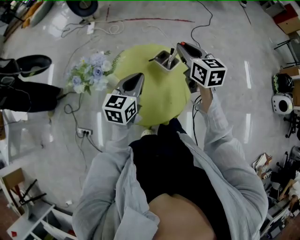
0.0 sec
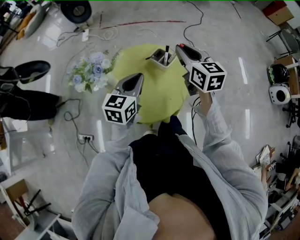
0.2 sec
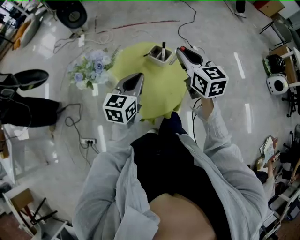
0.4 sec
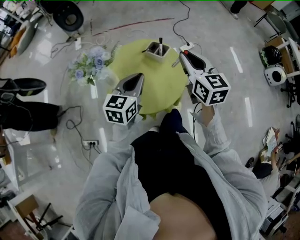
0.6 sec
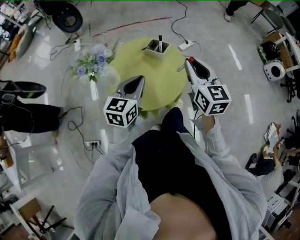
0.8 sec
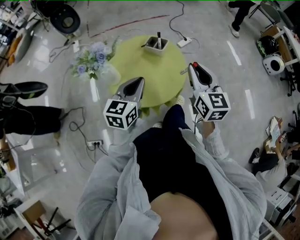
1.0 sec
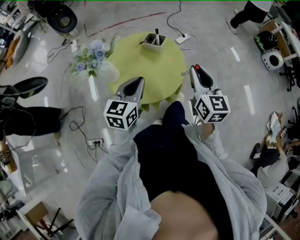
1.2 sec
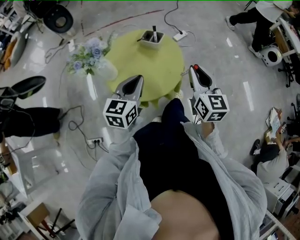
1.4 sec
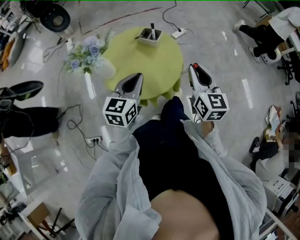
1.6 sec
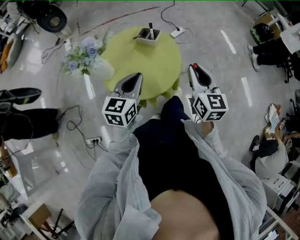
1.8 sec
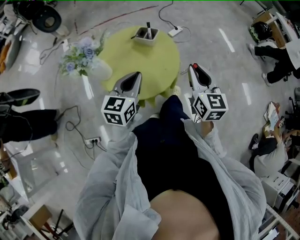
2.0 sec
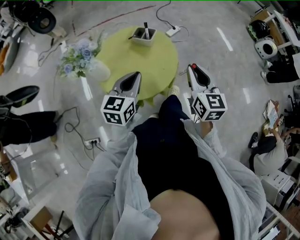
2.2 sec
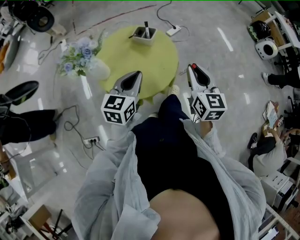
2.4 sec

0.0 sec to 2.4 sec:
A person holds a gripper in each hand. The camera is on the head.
0.0 sec to 1.2 sec: The left gripper goes roughly 15 cm backward. Meanwhile the right gripper shifts approximately 25 cm backward, and turns by roughly 30 degrees.
1.2 sec to 2.4 sec: There are only small adjustments of the grippers.

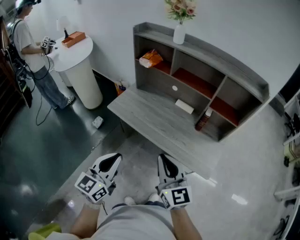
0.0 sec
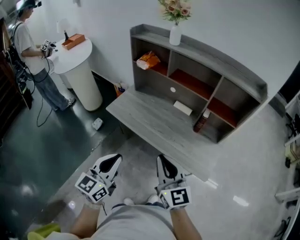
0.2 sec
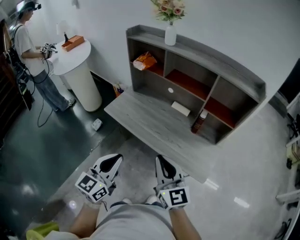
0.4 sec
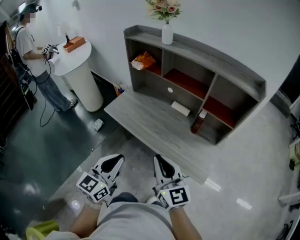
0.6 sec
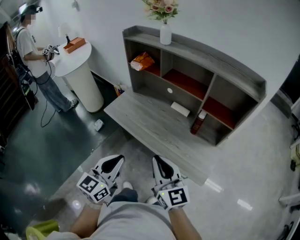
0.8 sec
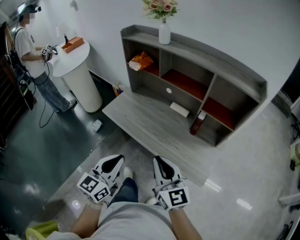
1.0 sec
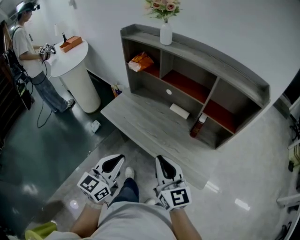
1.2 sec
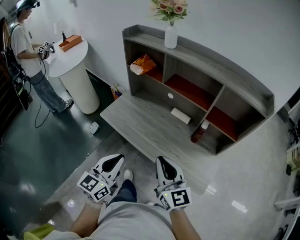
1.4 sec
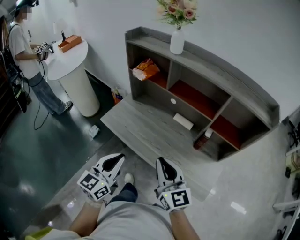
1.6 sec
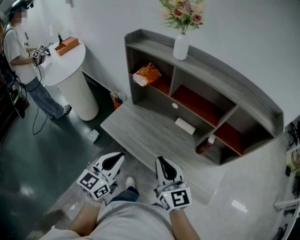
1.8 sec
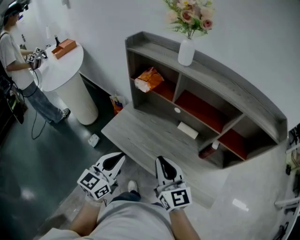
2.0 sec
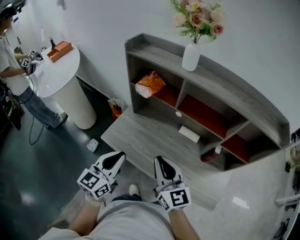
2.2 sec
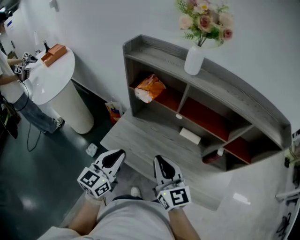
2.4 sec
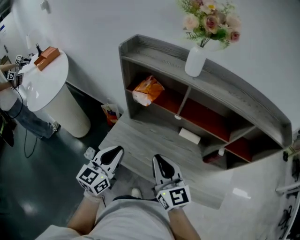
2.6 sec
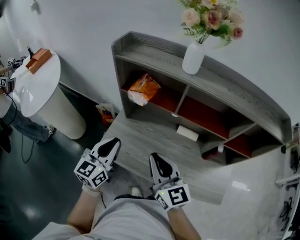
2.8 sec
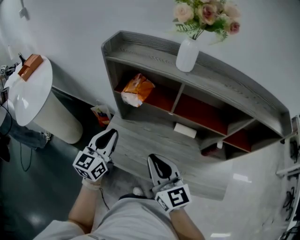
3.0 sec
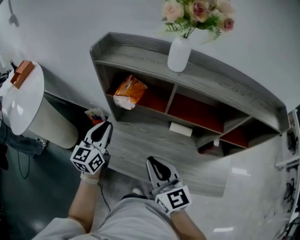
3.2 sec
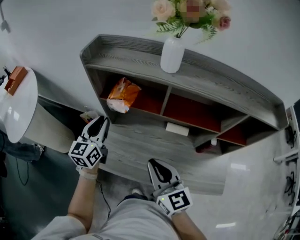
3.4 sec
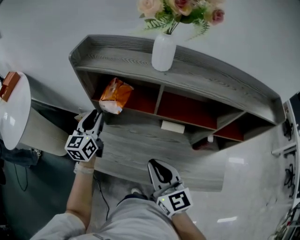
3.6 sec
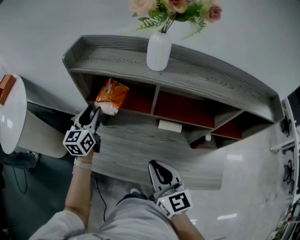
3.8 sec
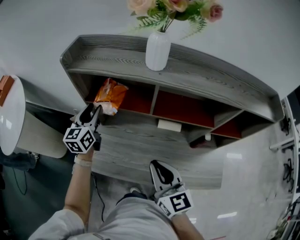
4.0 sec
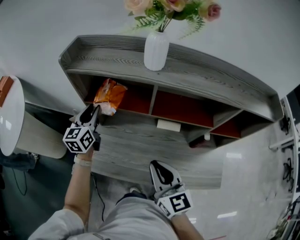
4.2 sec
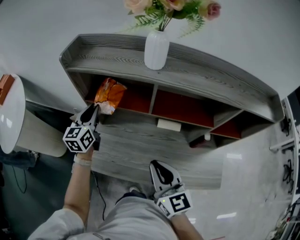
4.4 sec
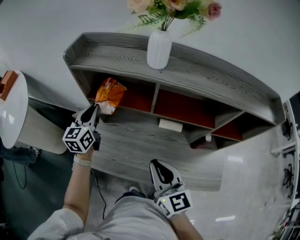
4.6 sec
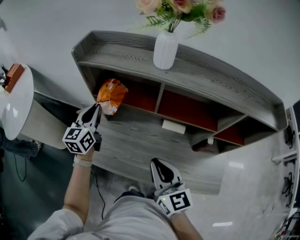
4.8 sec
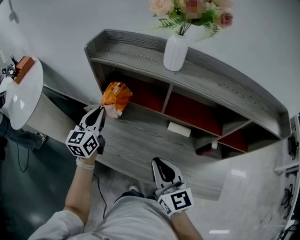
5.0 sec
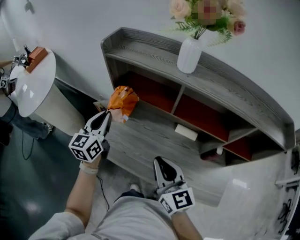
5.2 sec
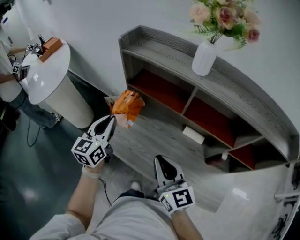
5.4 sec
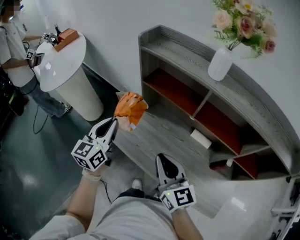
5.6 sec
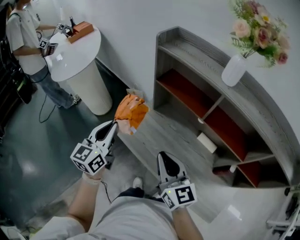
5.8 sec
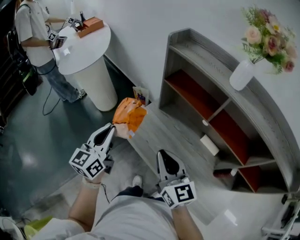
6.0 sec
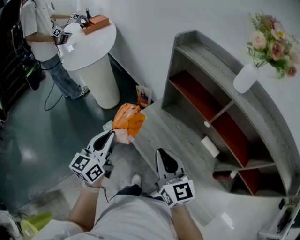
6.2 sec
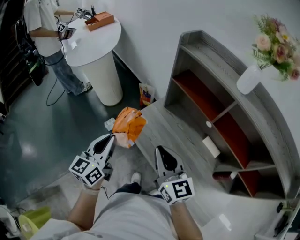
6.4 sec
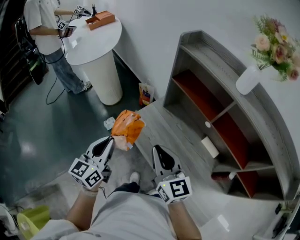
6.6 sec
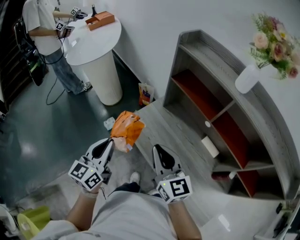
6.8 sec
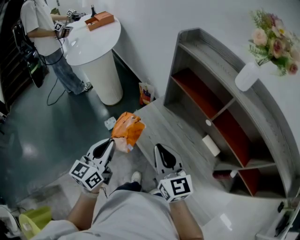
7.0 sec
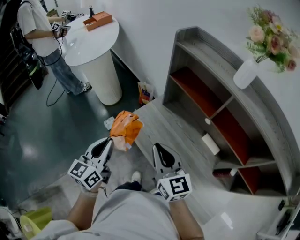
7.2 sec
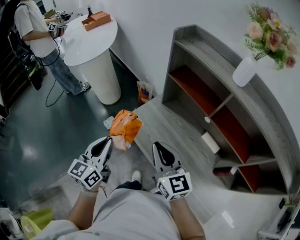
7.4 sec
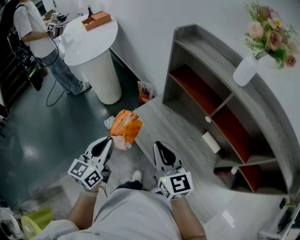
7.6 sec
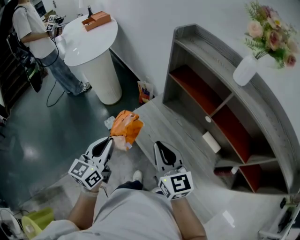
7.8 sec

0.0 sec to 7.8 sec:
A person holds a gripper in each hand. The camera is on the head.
0.0 sec to 1.6 sec: Both grippers move forward, approximately 15 cm.
1.6 sec to 3.2 sec: The right gripper travels forward and to the left by about 25 cm; the left gripper is displaced forward and to the left by approximately 40 cm.
3.2 sec to 4.6 sec: The left gripper shifts roughly 10 cm forward, and opens, then closes again. The right gripper heads to the right, covering some 5 cm.
4.6 sec to 6.2 sec: The right gripper changes place by about 10 cm, and rotates some 40 degrees. The left gripper moves some 35 cm, and swivels approximately 30 degrees.
6.2 sec to 7.8 sec: The left gripper is displaced backward by approximately 5 cm.

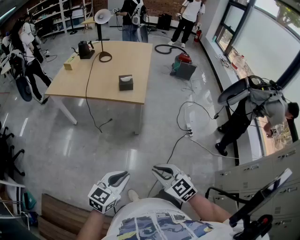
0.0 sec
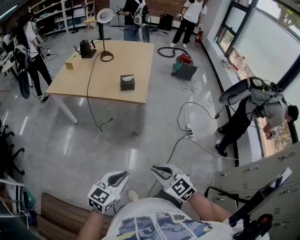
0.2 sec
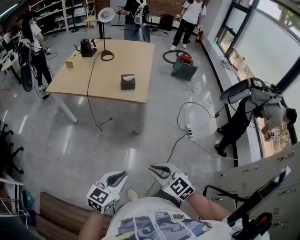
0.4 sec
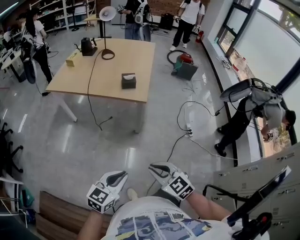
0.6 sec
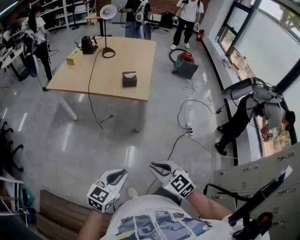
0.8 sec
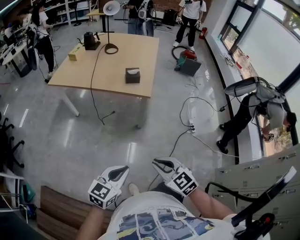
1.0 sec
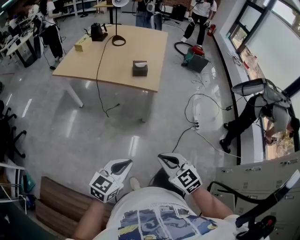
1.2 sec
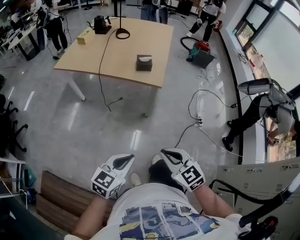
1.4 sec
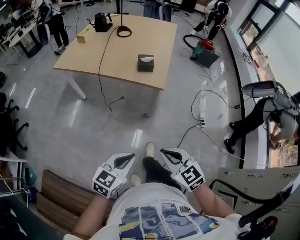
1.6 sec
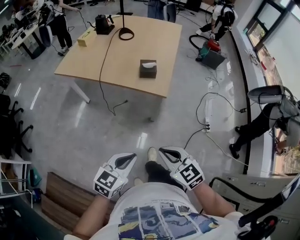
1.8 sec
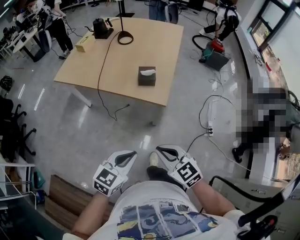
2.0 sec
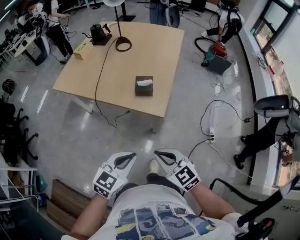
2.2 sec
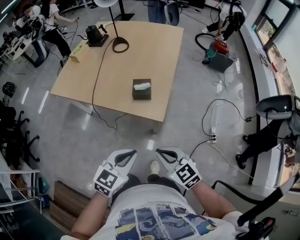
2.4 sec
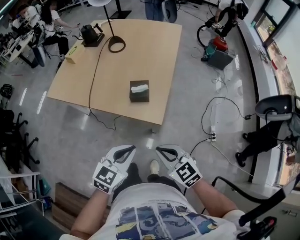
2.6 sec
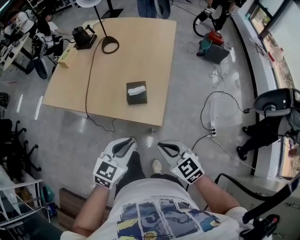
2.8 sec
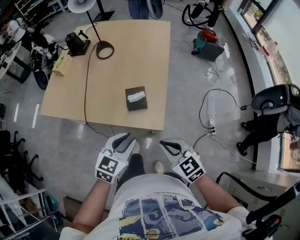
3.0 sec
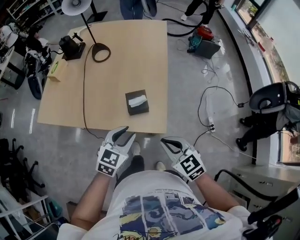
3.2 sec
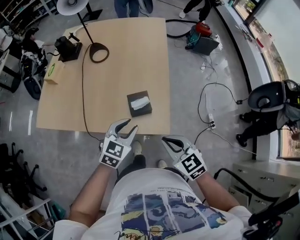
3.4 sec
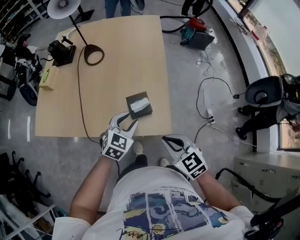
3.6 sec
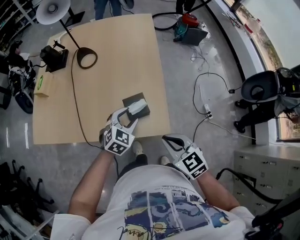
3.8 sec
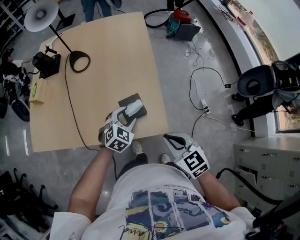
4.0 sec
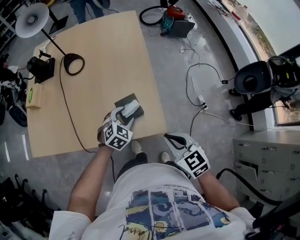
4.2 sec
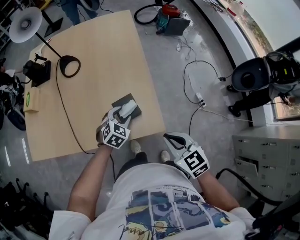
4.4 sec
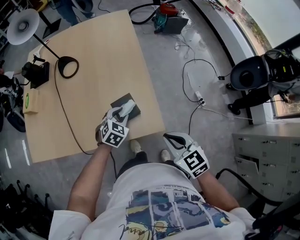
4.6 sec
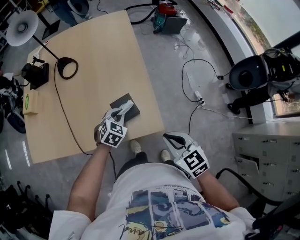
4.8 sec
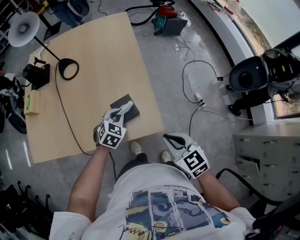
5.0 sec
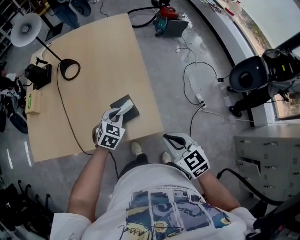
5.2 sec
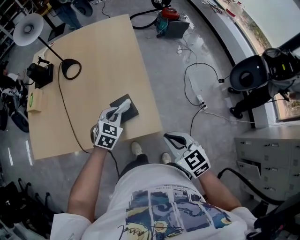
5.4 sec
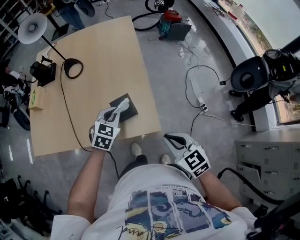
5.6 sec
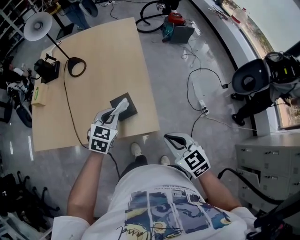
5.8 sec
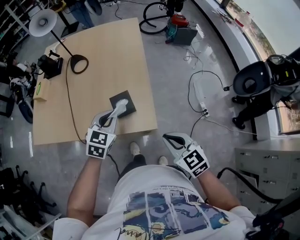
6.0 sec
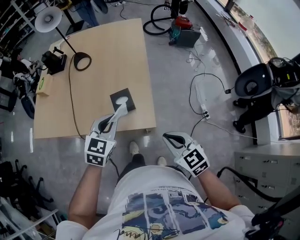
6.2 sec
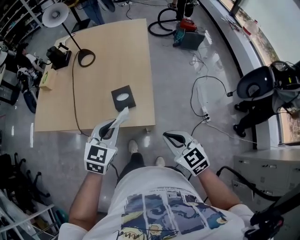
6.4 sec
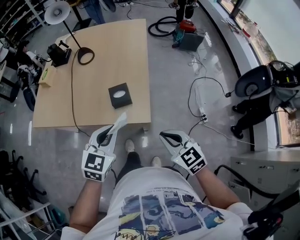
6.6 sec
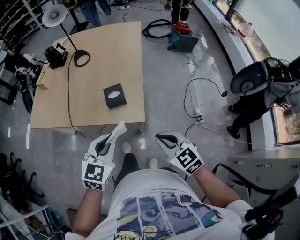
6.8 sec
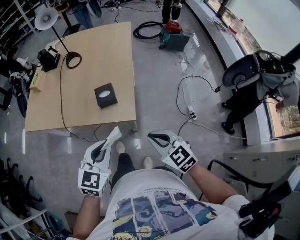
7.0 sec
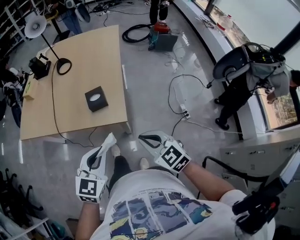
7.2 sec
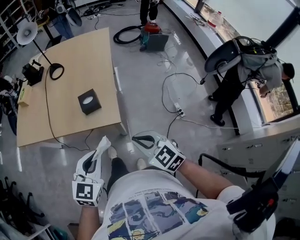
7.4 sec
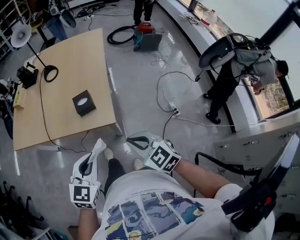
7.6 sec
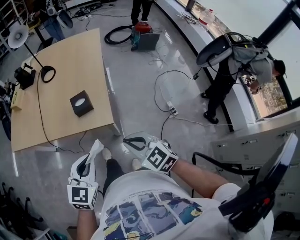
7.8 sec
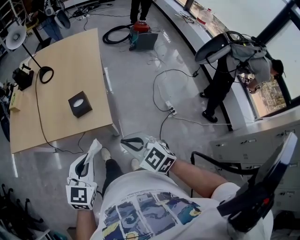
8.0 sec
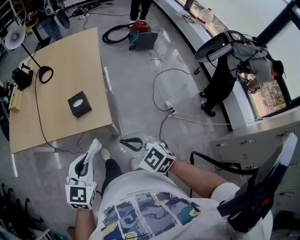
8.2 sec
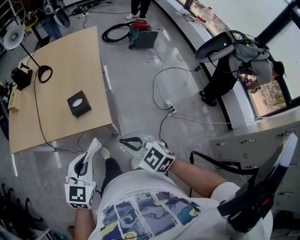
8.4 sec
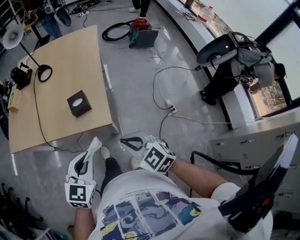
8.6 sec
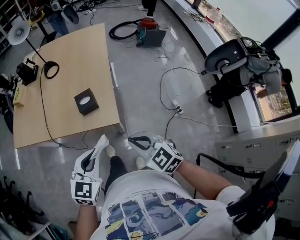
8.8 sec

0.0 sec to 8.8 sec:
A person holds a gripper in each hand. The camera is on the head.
0.0 sec to 1.4 sec: The right gripper shifts by roughly 5 cm, while the left gripper ends up approximately 5 cm from where it was.
1.4 sec to 3.0 sec: Both grippers are carried forward, roughly 40 cm. The left gripper opens up.
3.0 sec to 4.4 sec: The left gripper travels forward and downward by roughly 25 cm, rotates some 30 degrees, and opens, while the right gripper moves forward, some 10 cm, and swivels roughly 30 degrees.
4.4 sec to 5.8 sec: The right gripper moves to the right, some 5 cm. The left gripper moves upward, about 10 cm, and closes up.
5.8 sec to 7.4 sec: The left gripper heads backward, covering approximately 30 cm. Meanwhile the right gripper shifts about 10 cm backward.
7.4 sec to 8.8 sec: There are only small adjustments of the grippers.

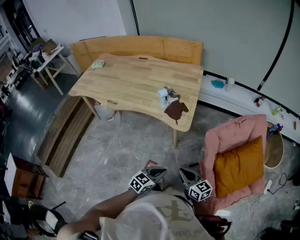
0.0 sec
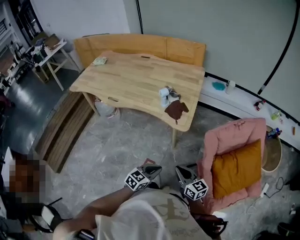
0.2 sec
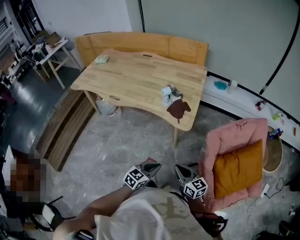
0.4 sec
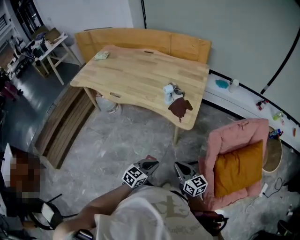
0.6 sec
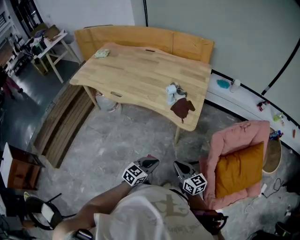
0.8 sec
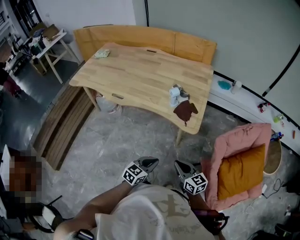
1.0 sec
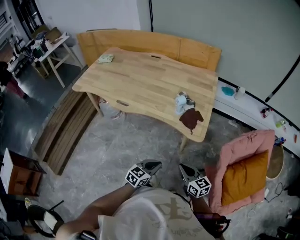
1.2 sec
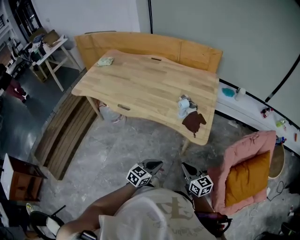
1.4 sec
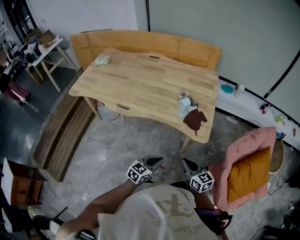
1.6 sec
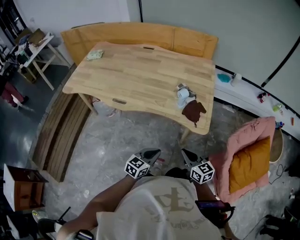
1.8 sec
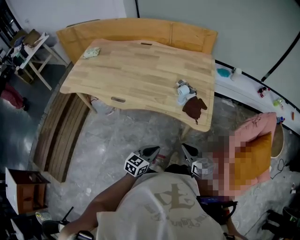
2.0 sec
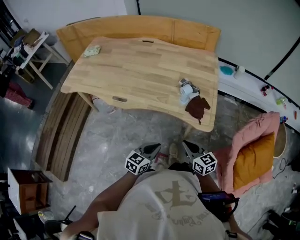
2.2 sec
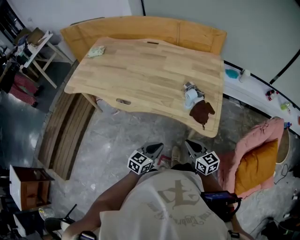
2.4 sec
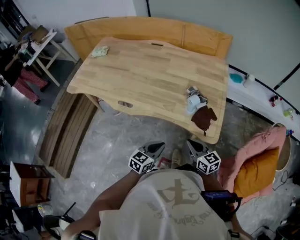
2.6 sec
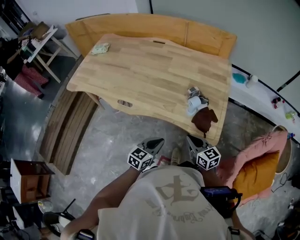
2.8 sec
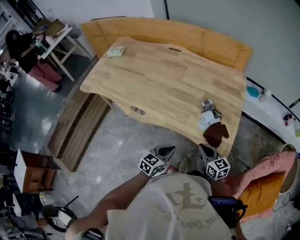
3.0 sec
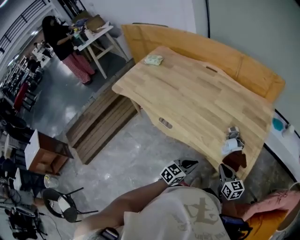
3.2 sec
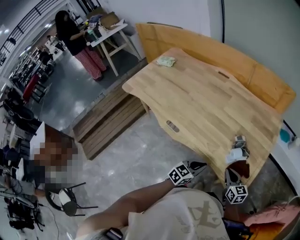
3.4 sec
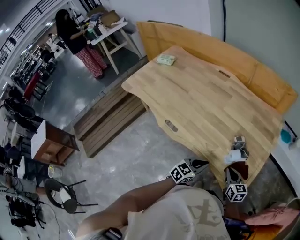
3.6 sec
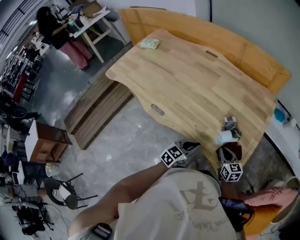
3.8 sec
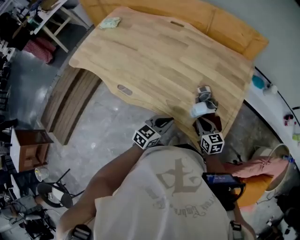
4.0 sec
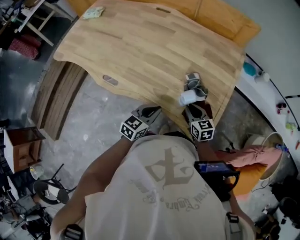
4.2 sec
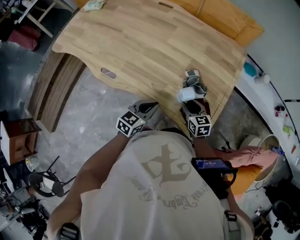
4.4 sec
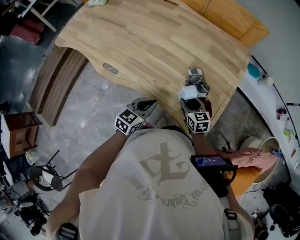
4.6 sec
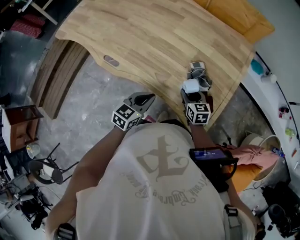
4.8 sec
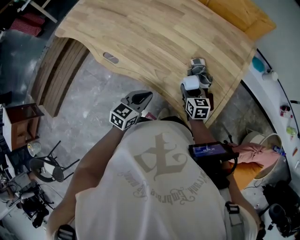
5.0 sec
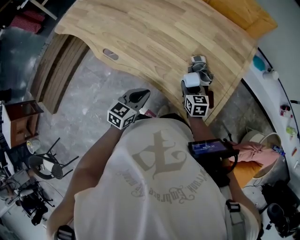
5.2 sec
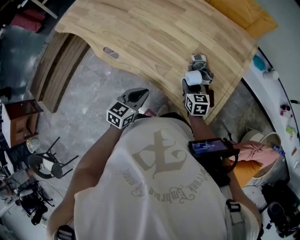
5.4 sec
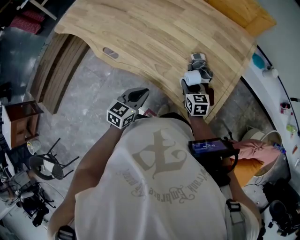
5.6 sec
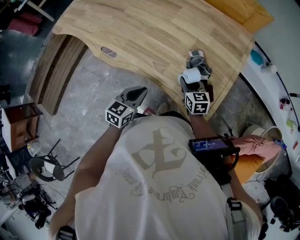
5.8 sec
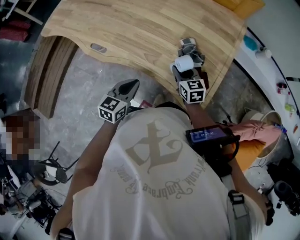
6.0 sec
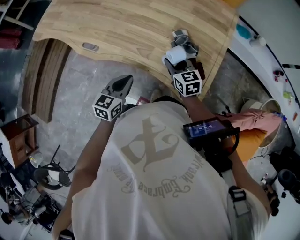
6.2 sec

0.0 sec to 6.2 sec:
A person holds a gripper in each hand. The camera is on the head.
0.0 sec to 1.6 sec: The two grippers go approximately 25 cm to the left and forward.
1.6 sec to 3.2 sec: Both grippers move forward, roughly 25 cm.
3.2 sec to 4.6 sec: The right gripper goes some 15 cm forward and downward, and opens up. Meanwhile the left gripper heads forward, covering about 10 cm.
4.6 sec to 6.2 sec: The left gripper changes place by some 5 cm.
